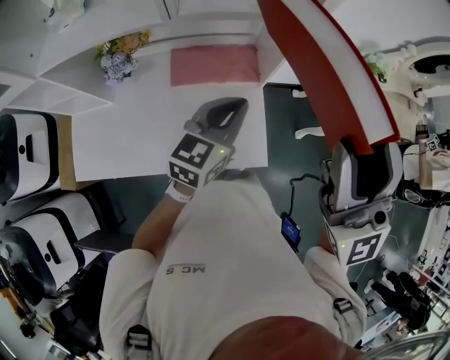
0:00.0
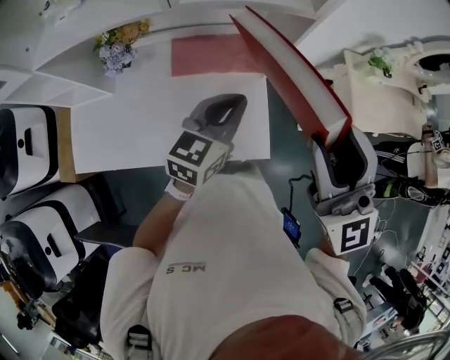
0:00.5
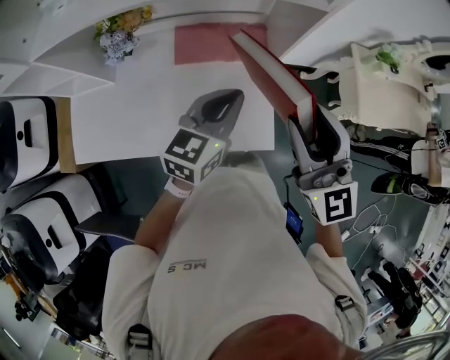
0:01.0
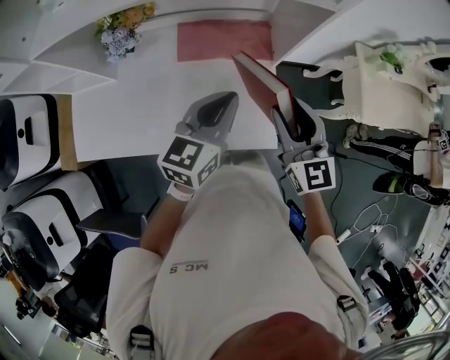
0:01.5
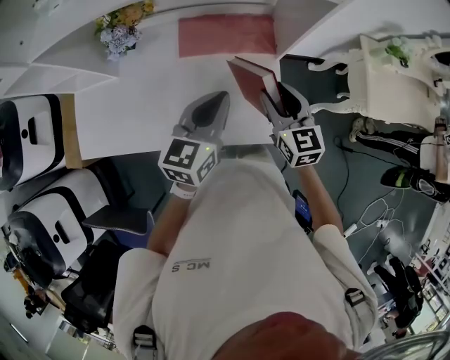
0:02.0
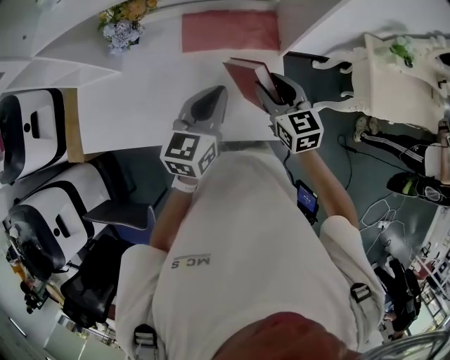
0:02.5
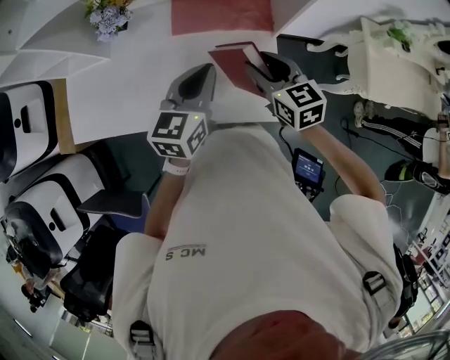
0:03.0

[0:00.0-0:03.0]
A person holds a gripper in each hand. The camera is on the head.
0:00.0 to 0:01.5: The left gripper travels to the left and downward by roughly 5 cm, while the right gripper travels downward by approximately 30 cm, and points its fingers about 30 degrees further downward.
0:01.5 to 0:03.0: The left gripper goes some 5 cm downward. Meanwhile the right gripper is displaced downward by about 10 cm, and rotates some 20 degrees.

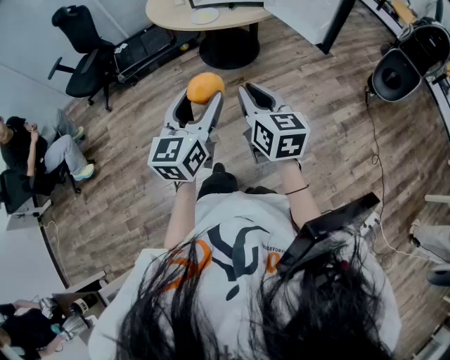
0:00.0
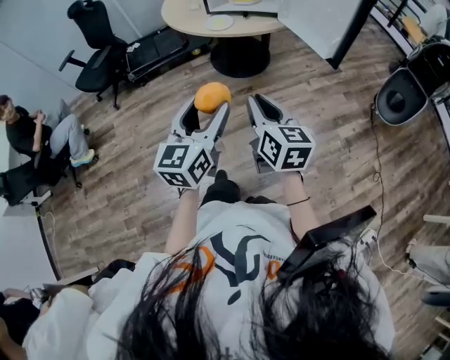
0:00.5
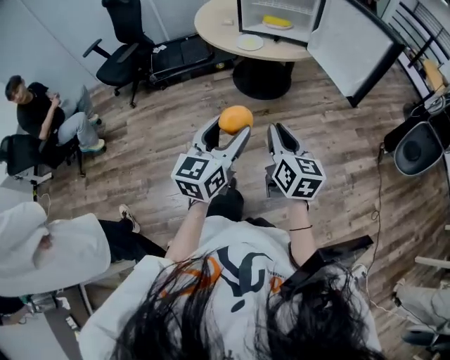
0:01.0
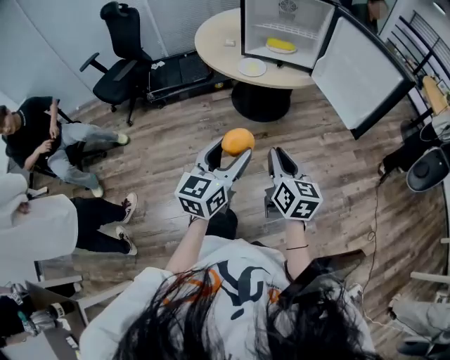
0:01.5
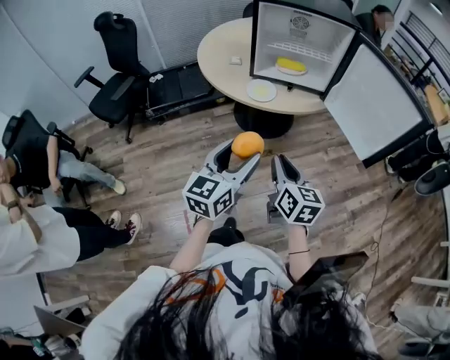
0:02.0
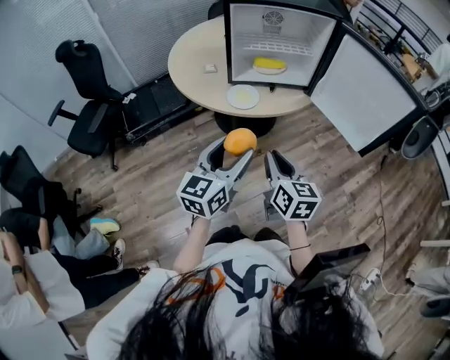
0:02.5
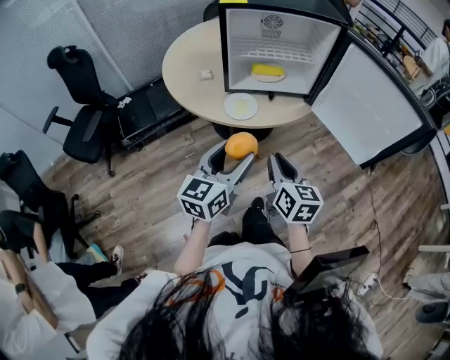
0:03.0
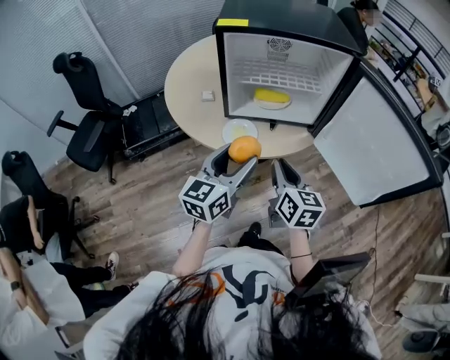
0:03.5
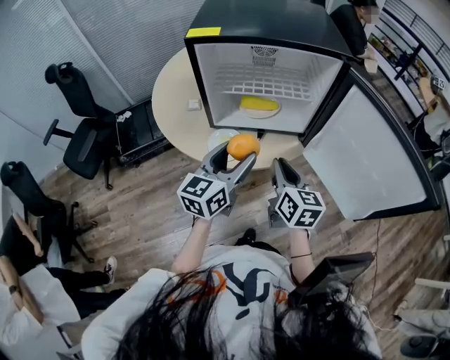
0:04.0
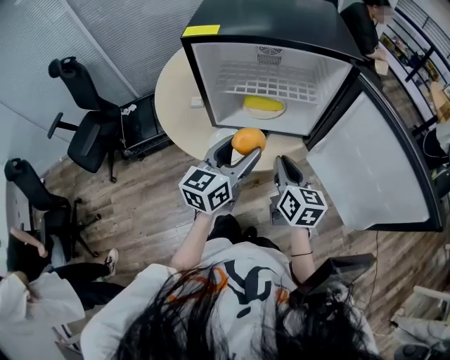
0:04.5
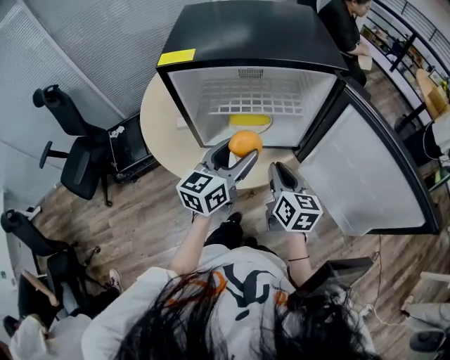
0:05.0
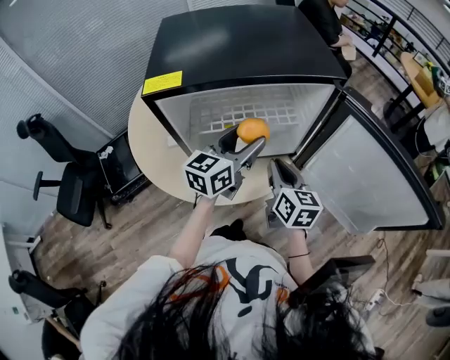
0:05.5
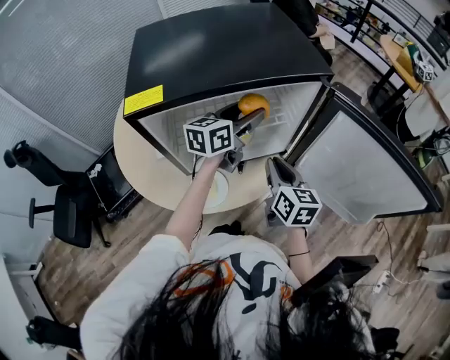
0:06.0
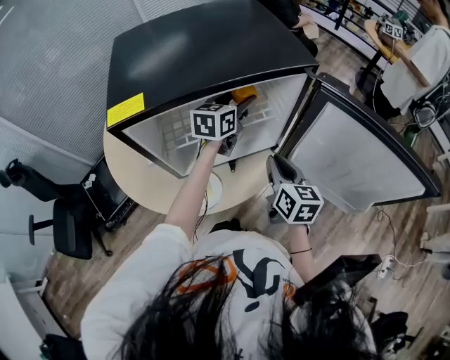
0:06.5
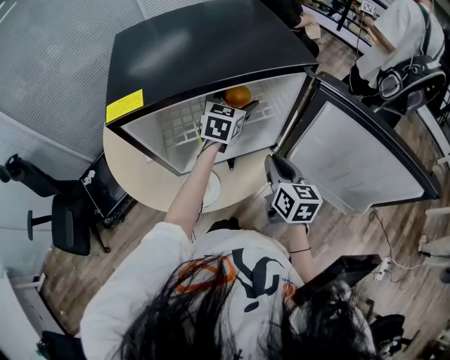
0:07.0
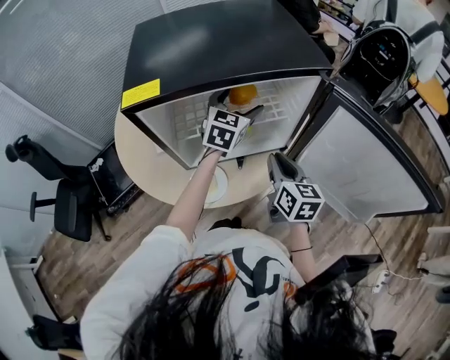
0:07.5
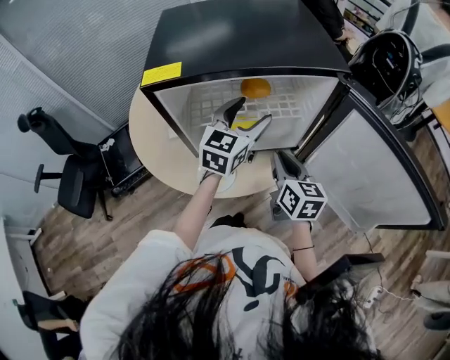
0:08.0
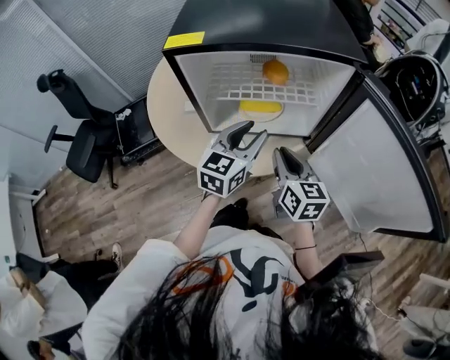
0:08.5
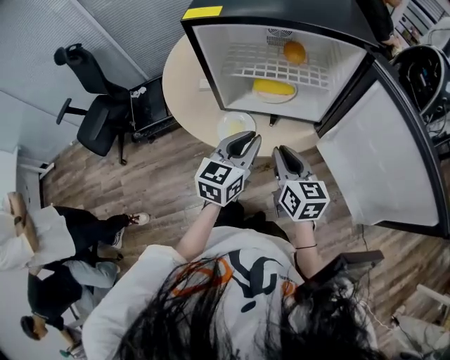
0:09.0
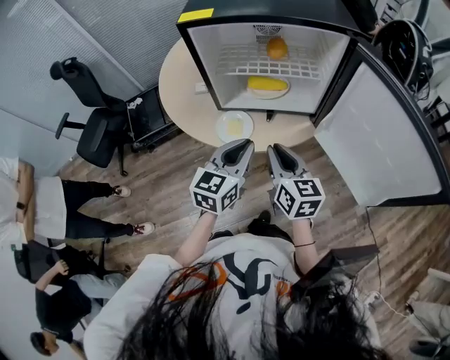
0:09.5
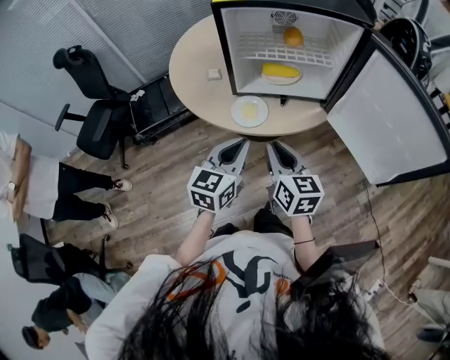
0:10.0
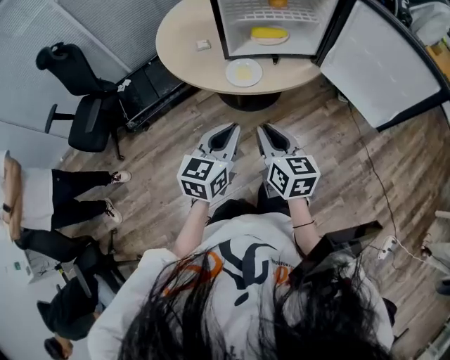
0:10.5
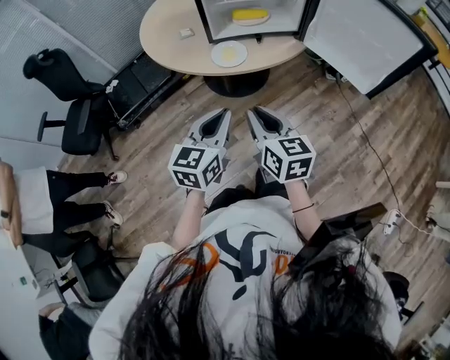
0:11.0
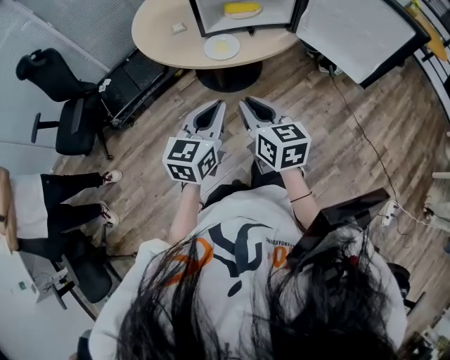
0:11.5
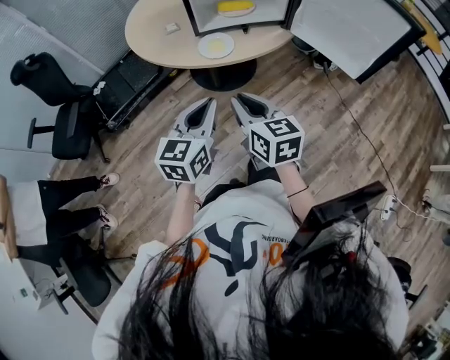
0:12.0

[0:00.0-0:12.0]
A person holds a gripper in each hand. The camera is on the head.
0:00.0 to 0:02.0: The grippers both shift forward and to the left by roughly 20 cm.
0:02.0 to 0:04.0: Both grippers travel together forward, roughly 30 cm.
0:04.0 to 0:06.0: The right gripper moves forward, some 15 cm; the left gripper goes roughly 30 cm forward, and rotates about 30 degrees.
0:06.0 to 0:08.0: The left gripper shifts some 5 cm backward, and turns by some 30 degrees.
0:08.0 to 0:10.0: The two grippers go approximately 30 cm backward and to the left. The left gripper closes.
0:10.0 to 0:12.0: Both grippers move backward, roughly 15 cm.

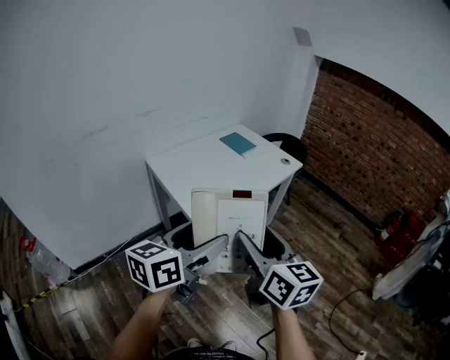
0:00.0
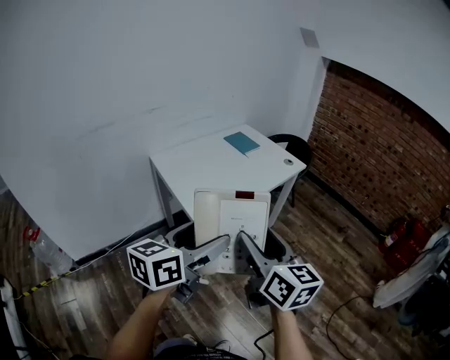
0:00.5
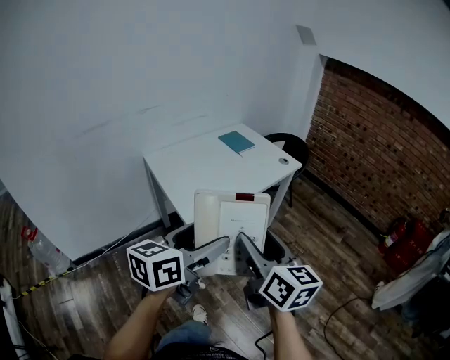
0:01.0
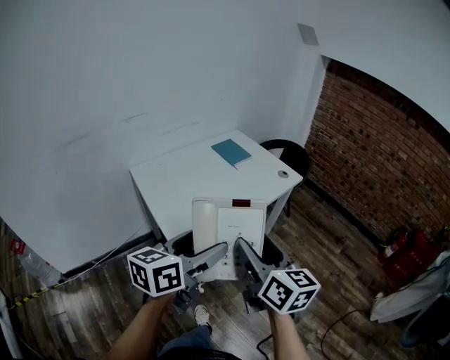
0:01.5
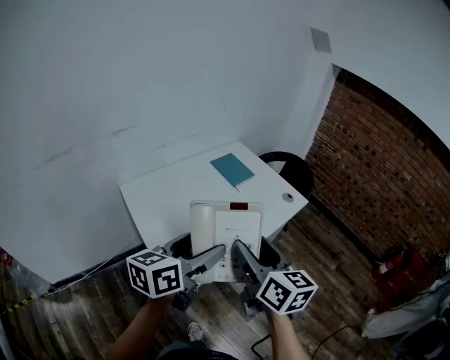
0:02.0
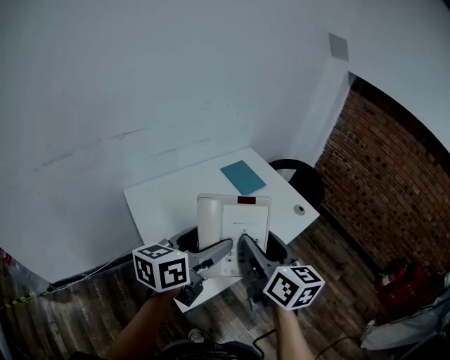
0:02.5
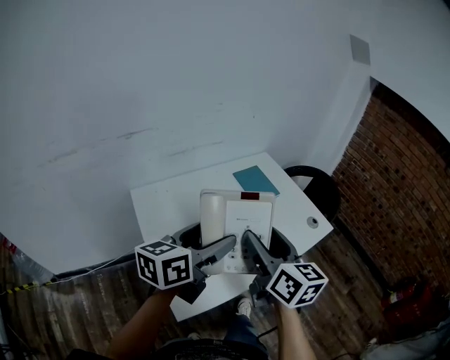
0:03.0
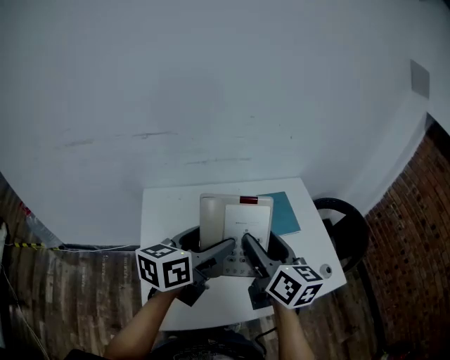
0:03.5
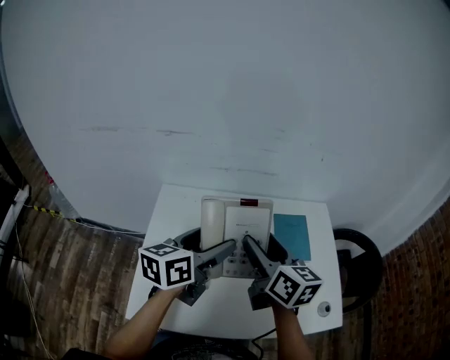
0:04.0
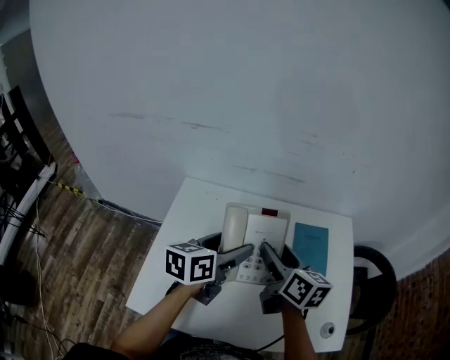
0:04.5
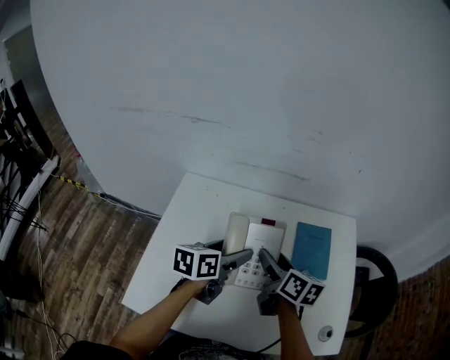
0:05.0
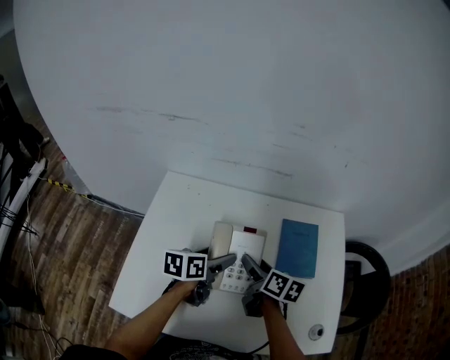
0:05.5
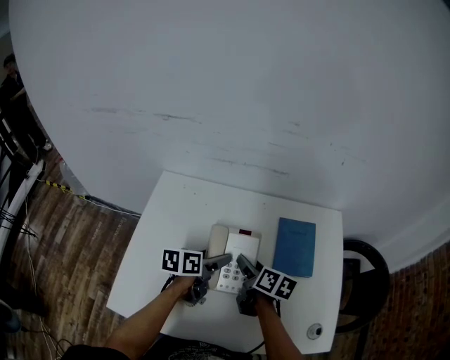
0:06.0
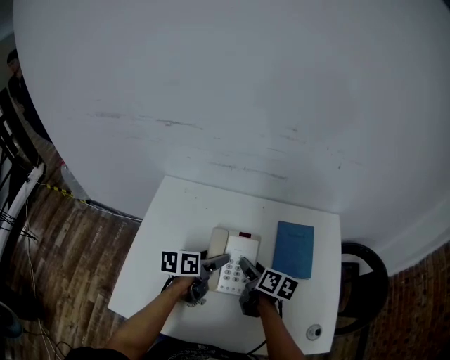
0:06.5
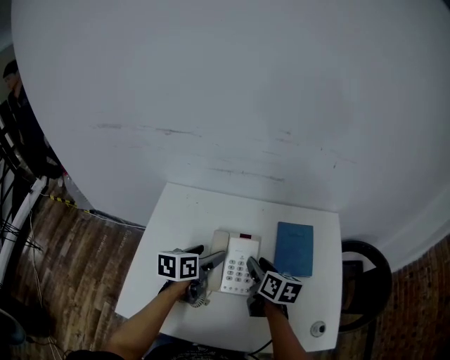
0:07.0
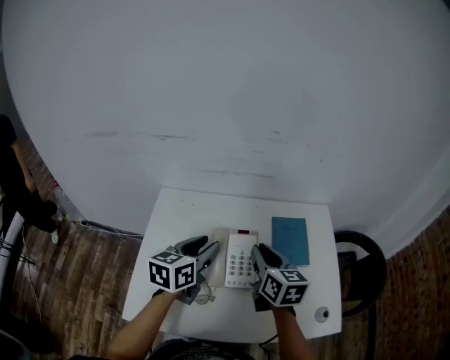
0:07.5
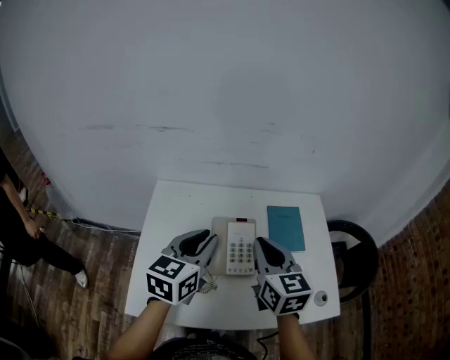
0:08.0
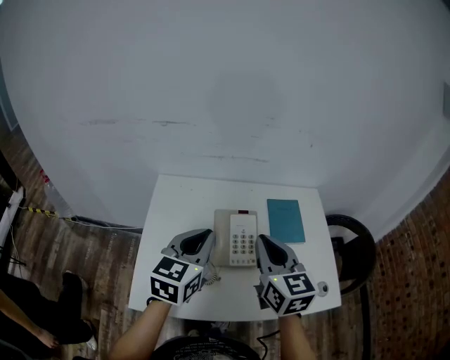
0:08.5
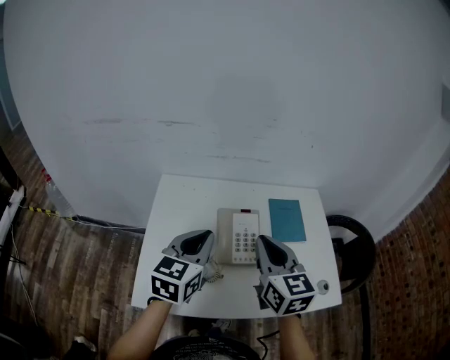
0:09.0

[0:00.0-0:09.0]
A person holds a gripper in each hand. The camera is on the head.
0:00.0 to 0:02.0: Both grippers travel together forward, roughly 30 cm.
0:02.0 to 0:04.5: The left gripper ends up about 35 cm from where it was, and changes its angle by roughly 50 degrees; the right gripper ends up some 40 cm from where it was, and swivels about 50 degrees.
0:04.5 to 0:07.0: The two grippers go approximately 10 cm downward. The right gripper closes up.
0:07.0 to 0:09.0: The two grippers go about 20 cm upward and backward. The right gripper changes its angle by about 40 degrees, and closes up, while the left gripper turns by approximately 30 degrees, and closes up.

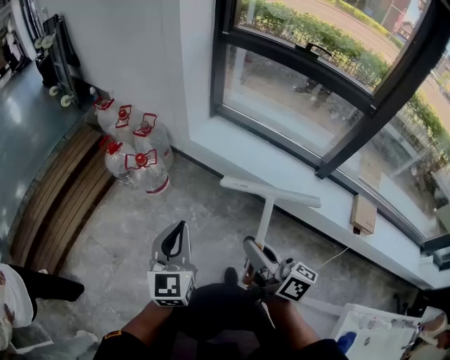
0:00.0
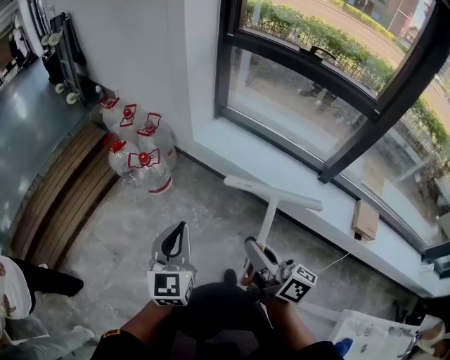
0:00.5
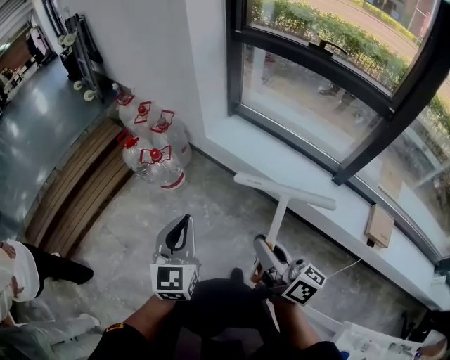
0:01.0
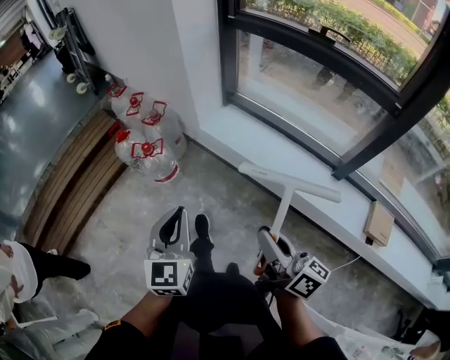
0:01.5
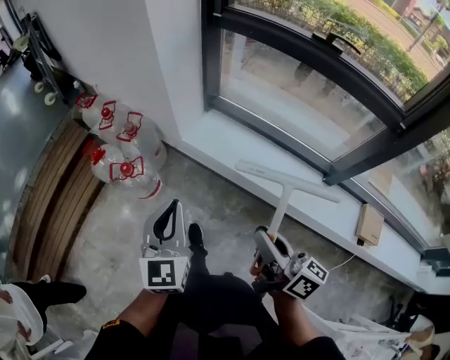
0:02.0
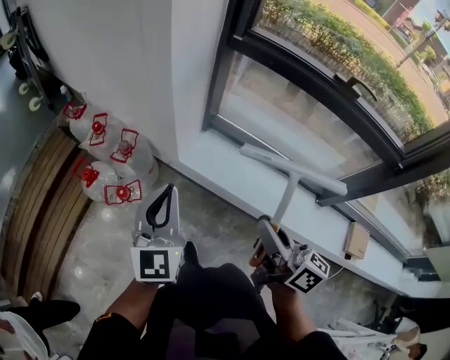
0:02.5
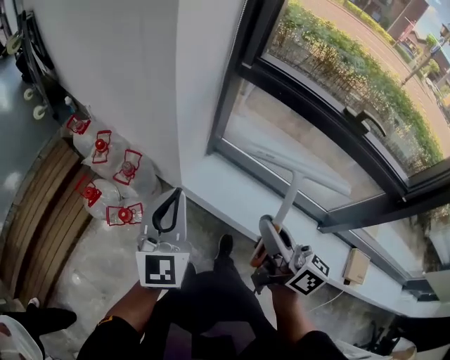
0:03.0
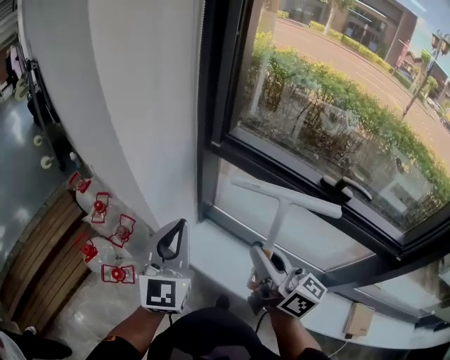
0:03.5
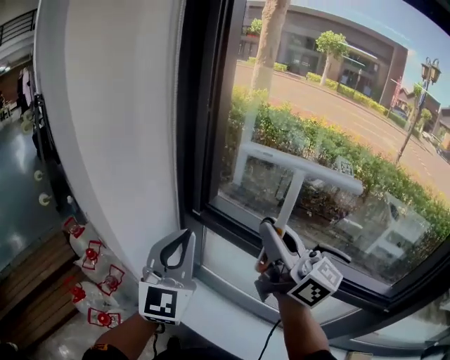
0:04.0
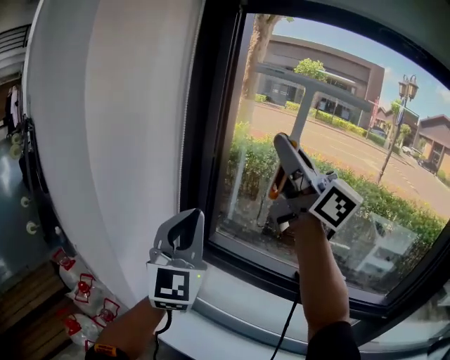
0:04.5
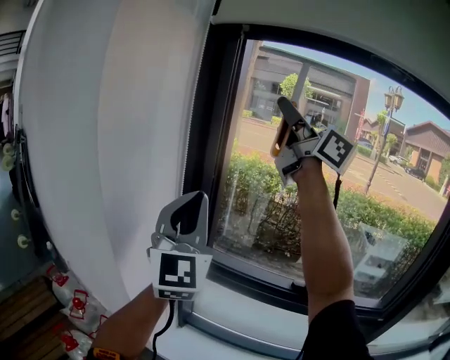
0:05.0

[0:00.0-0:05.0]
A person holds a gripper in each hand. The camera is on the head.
0:00.0 to 0:02.5: Both grippers move forward, about 35 cm.
0:02.5 to 0:05.0: The left gripper shifts roughly 50 cm upward, forward and to the right, and angles its fingers upward, by about 30 degrees. Meanwhile the right gripper heads upward and forward, covering some 80 cm, and points its fingers about 30 degrees further upward.
